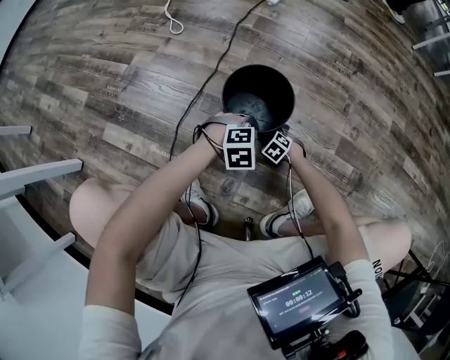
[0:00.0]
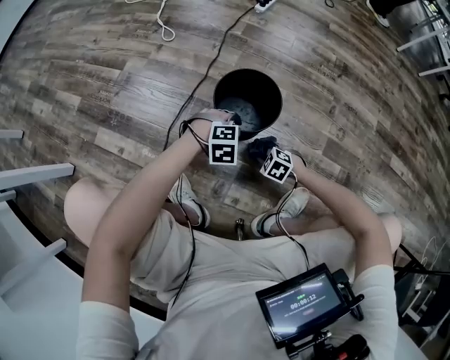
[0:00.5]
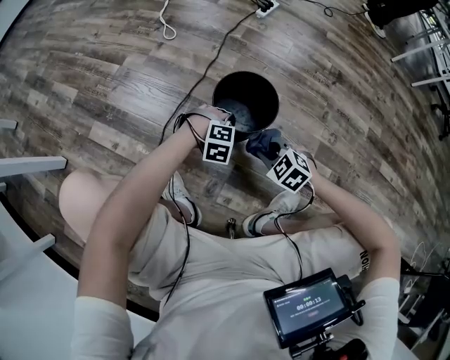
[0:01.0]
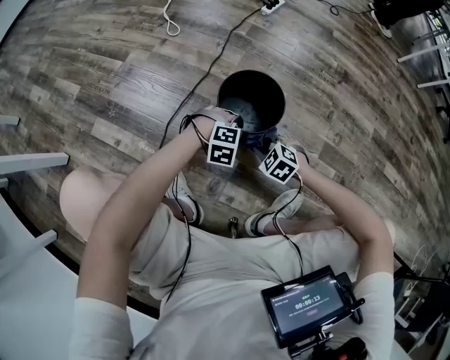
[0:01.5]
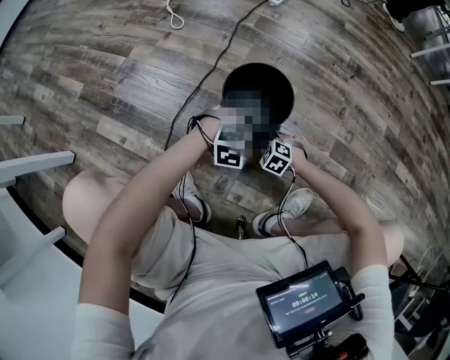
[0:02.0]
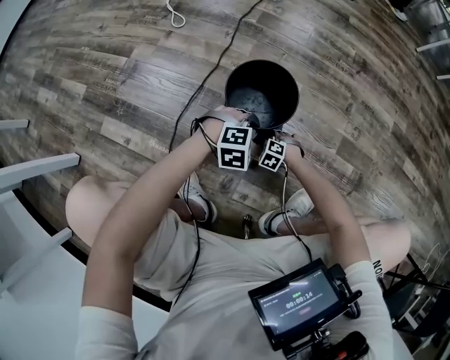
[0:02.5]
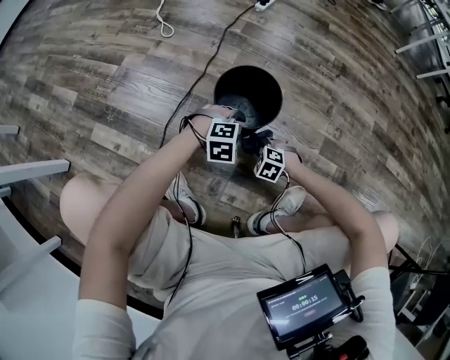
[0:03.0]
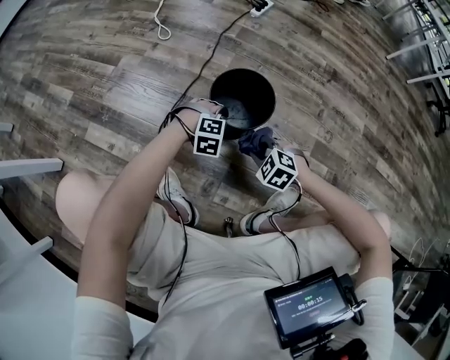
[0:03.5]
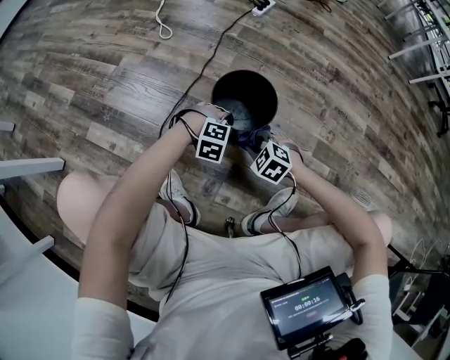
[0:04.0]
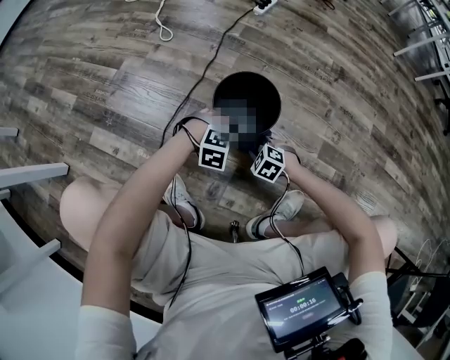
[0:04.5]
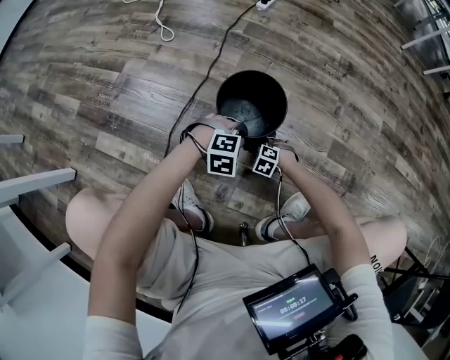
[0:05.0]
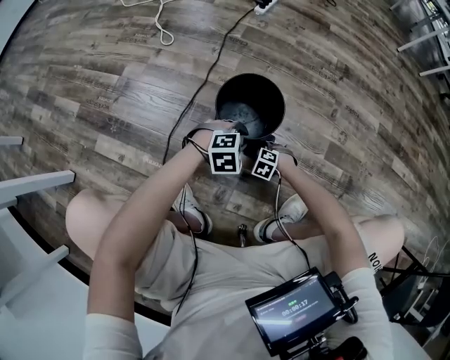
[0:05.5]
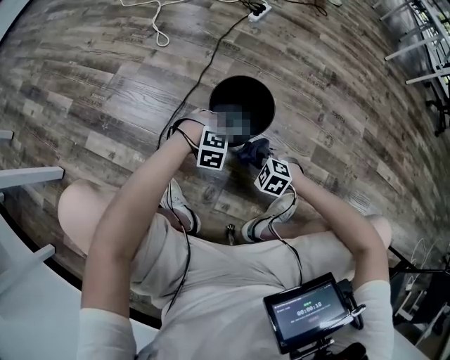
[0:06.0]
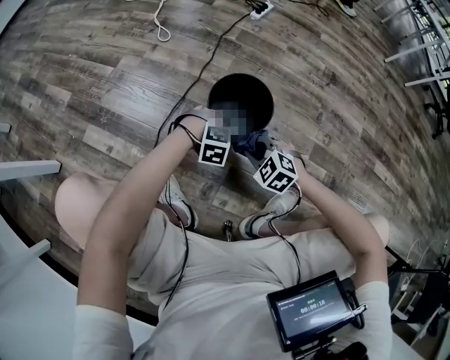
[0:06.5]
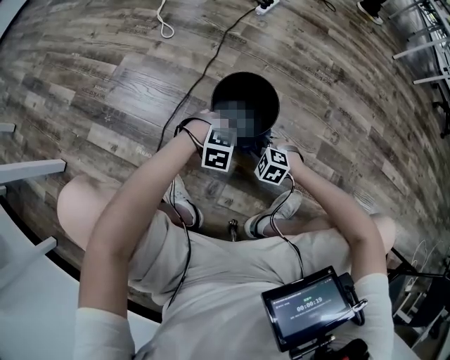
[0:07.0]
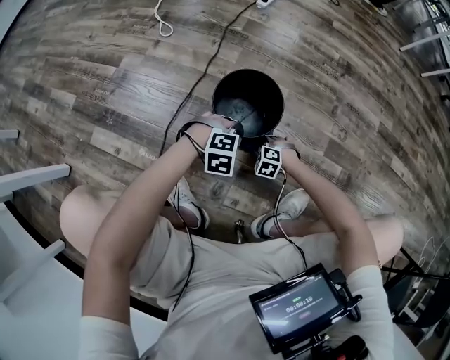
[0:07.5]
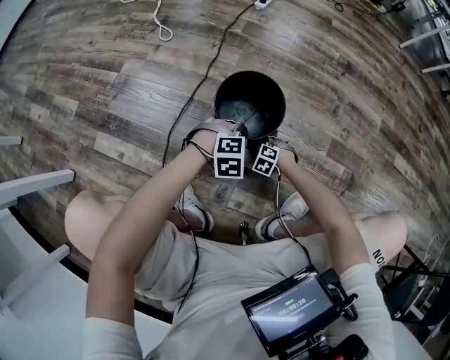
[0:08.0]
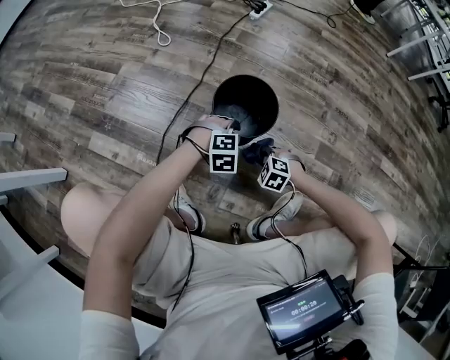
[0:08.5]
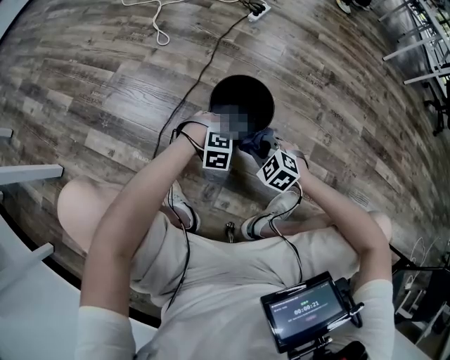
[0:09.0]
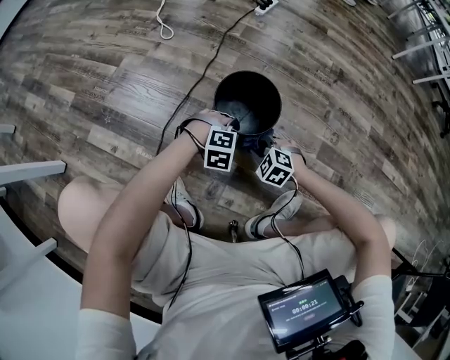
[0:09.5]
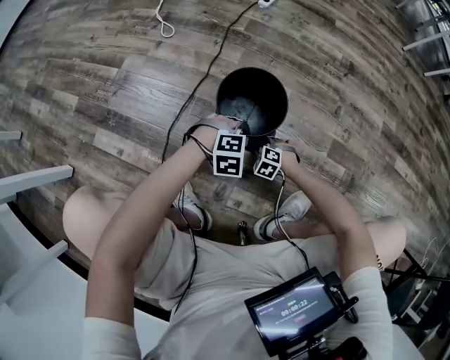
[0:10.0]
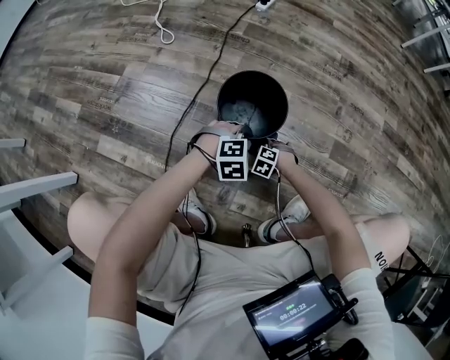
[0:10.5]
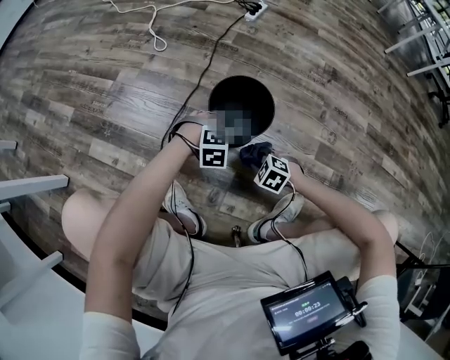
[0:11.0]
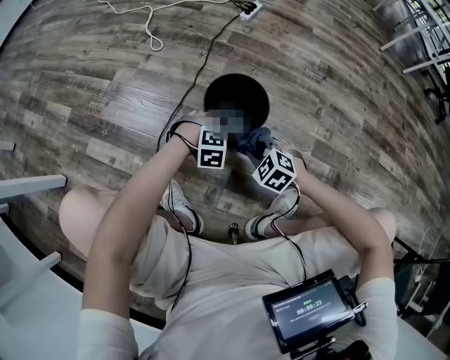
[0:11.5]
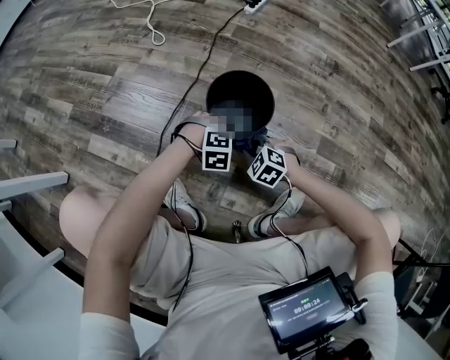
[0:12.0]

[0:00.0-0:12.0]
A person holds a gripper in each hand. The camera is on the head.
0:00.0 to 0:02.0: The right gripper reaches approximately 25 cm upward, then returns.
0:02.0 to 0:04.0: The right gripper travels upward by about 15 cm.
0:04.0 to 0:06.0: The right gripper moves about 20 cm downward and comes back.
0:06.0 to 0:08.0: The right gripper moves downward, about 15 cm.
0:08.0 to 0:10.0: The right gripper moves roughly 25 cm upward and comes back.
0:10.0 to 0:12.0: The right gripper shifts some 15 cm upward. The left gripper opens, then closes again.

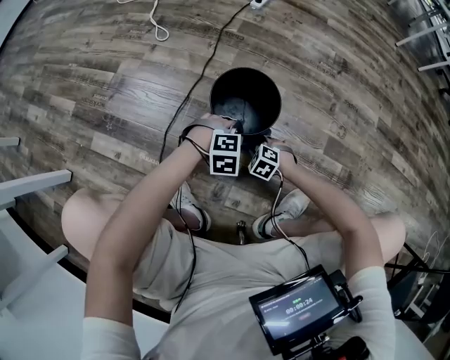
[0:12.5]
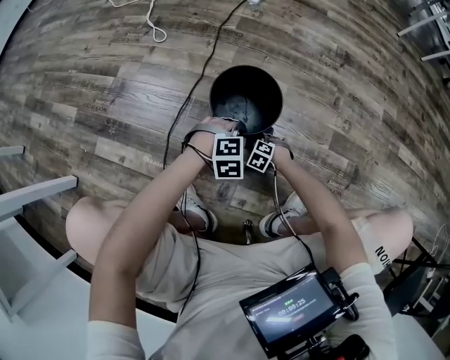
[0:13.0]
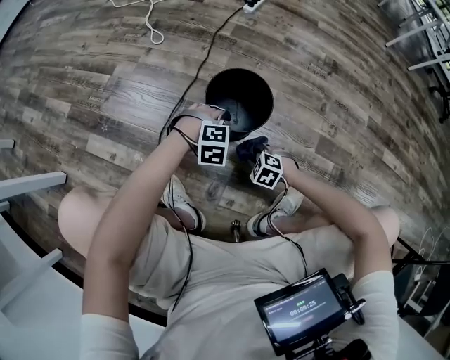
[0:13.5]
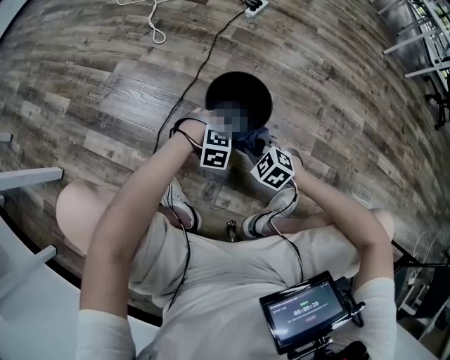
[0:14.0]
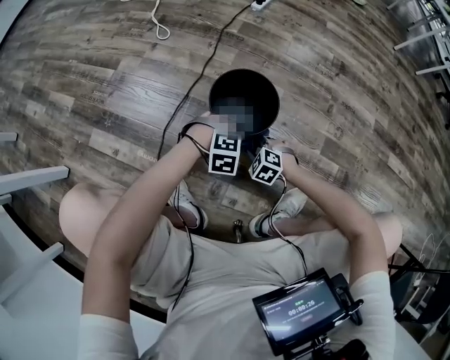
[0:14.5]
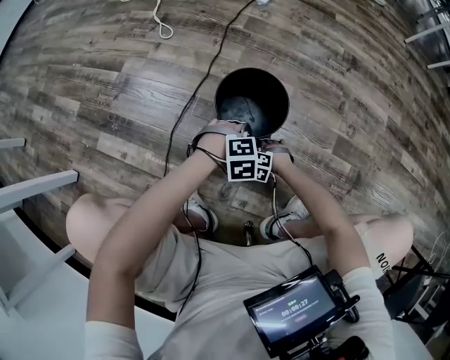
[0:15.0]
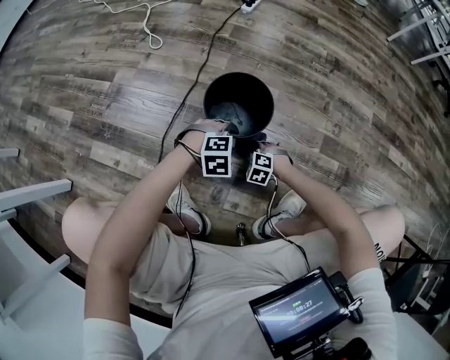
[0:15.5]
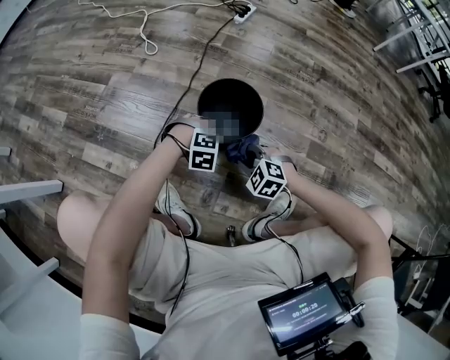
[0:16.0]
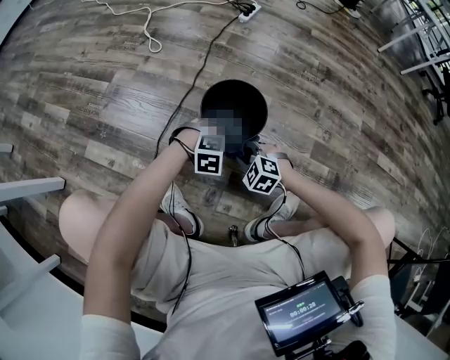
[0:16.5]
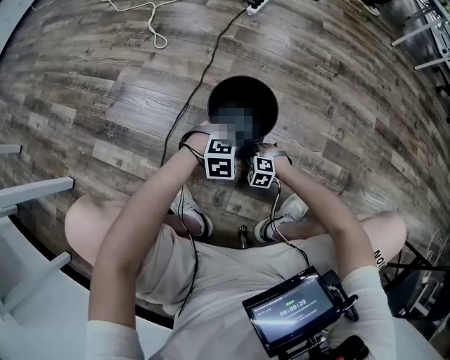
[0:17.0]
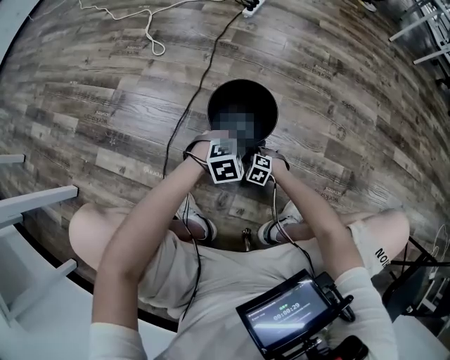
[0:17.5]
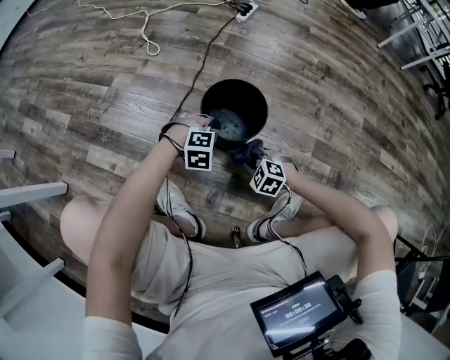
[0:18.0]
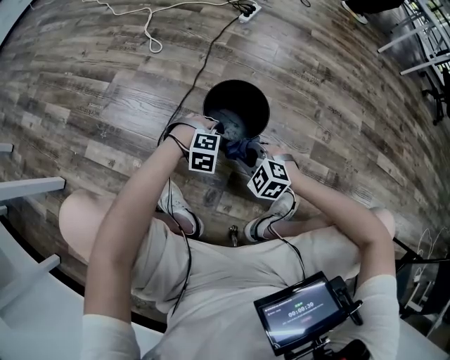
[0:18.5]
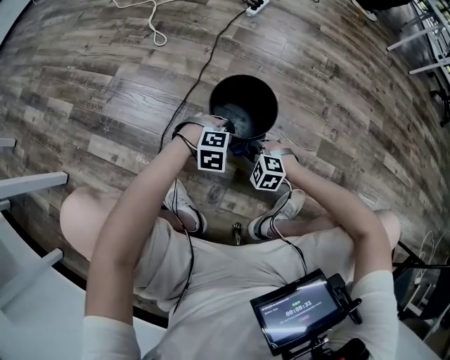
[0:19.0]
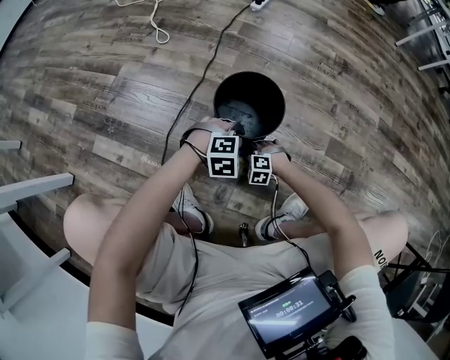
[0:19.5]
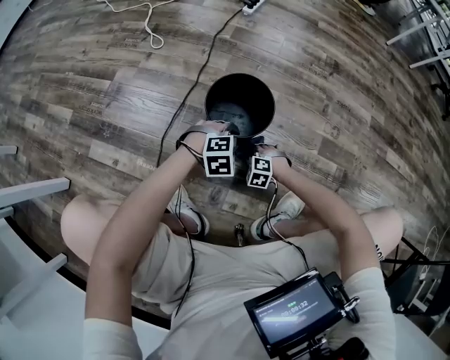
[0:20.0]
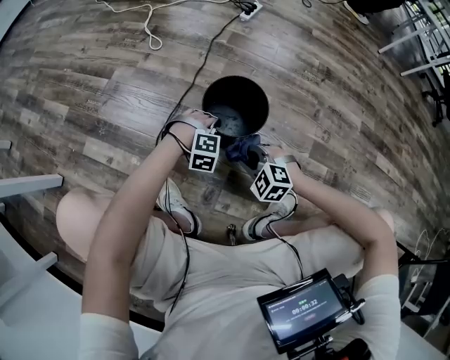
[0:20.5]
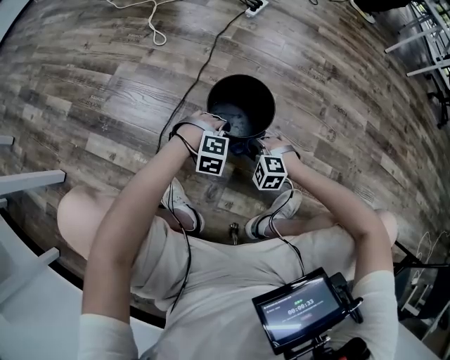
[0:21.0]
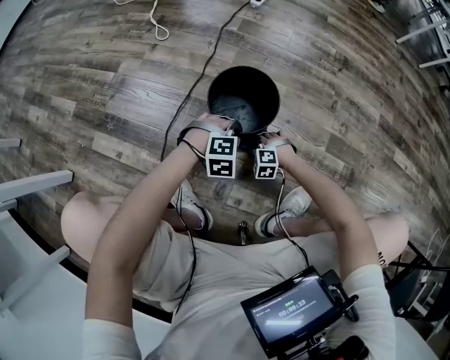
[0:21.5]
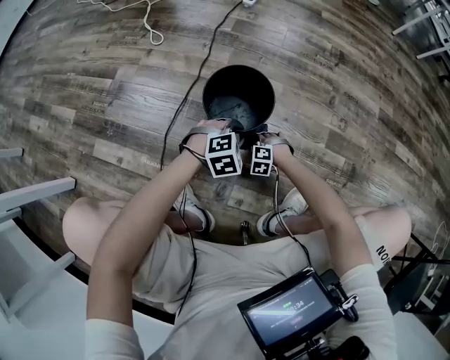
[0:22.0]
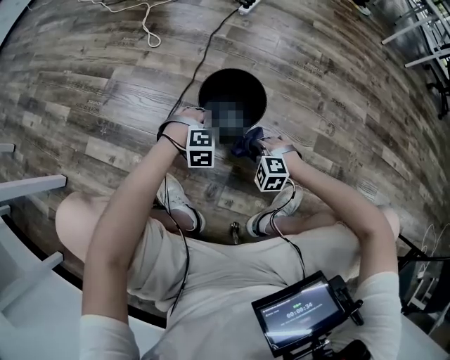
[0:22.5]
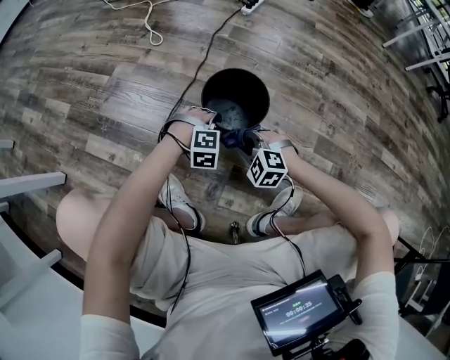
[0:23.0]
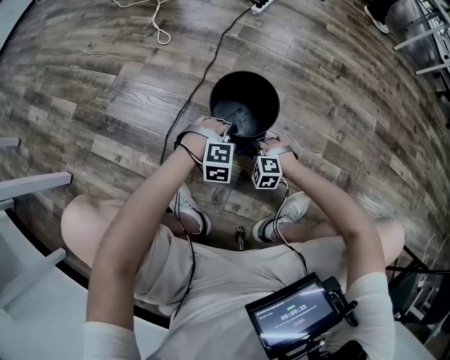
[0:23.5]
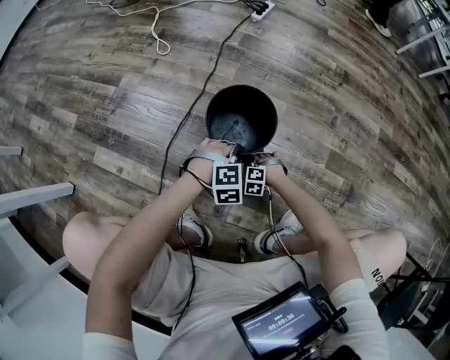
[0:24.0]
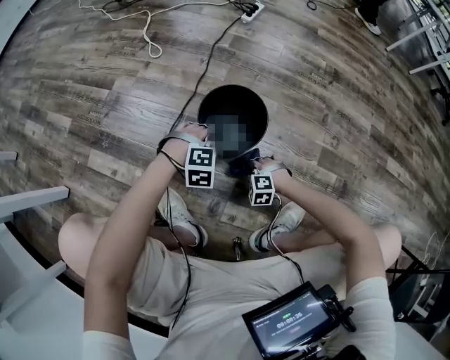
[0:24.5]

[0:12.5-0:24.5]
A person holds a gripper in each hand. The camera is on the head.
0:12.5 to 0:14.5: The right gripper swings up and down, some 25 cm each way, with 2 reversals. The left gripper opens and closes again.
0:14.5 to 0:16.5: The left gripper opens, then closes once more. Meanwhile the right gripper shifts about 5 cm upward.
0:16.5 to 0:18.5: The right gripper travels downward and back again, roughly 20 cm each way.
0:18.5 to 0:20.5: The right gripper moves approximately 20 cm downward and comes back.
0:20.5 to 0:22.5: The right gripper moves some 20 cm downward and comes back.
0:22.5 to 0:24.5: The right gripper swings up and down, approximately 25 cm each way, with 2 reversals, while the left gripper closes, then reopens.

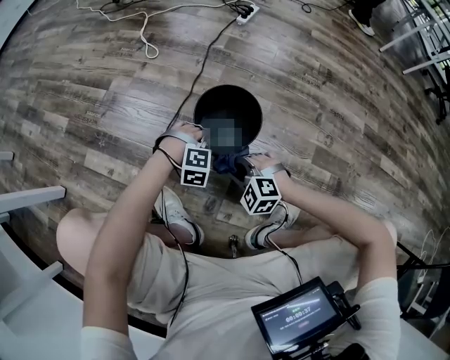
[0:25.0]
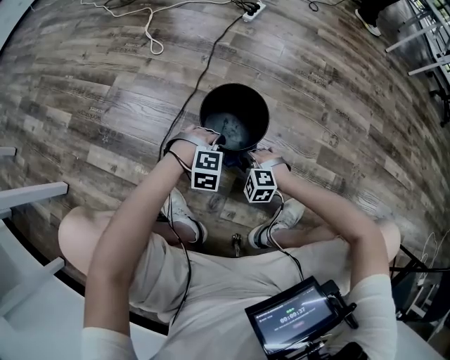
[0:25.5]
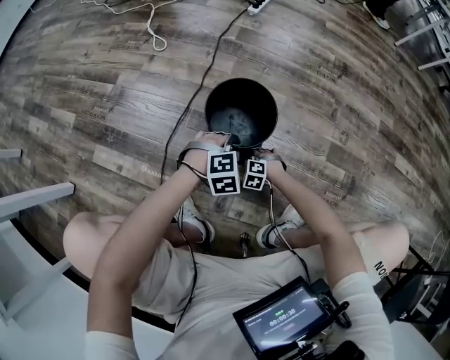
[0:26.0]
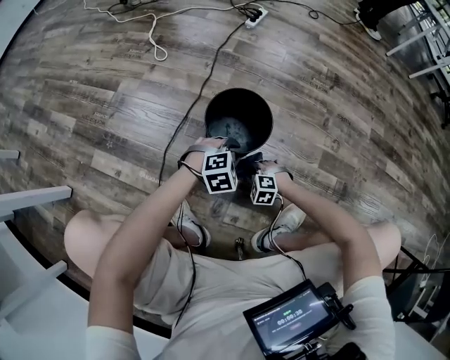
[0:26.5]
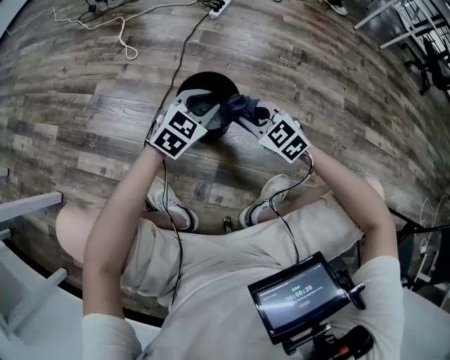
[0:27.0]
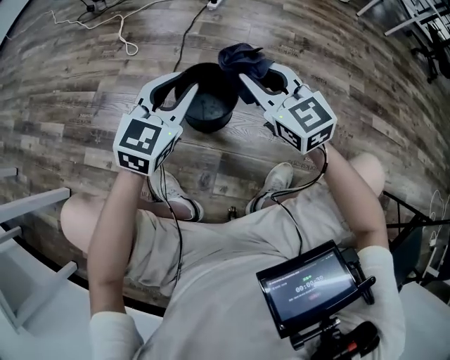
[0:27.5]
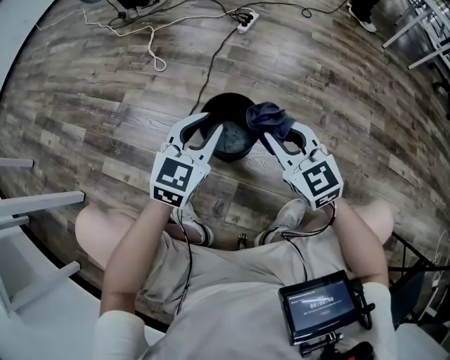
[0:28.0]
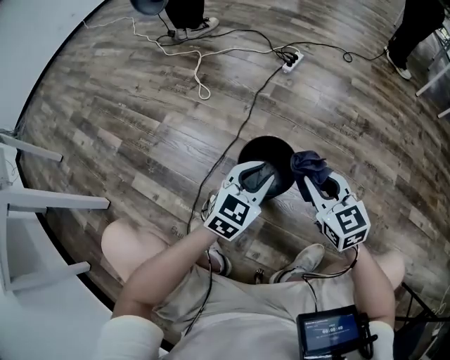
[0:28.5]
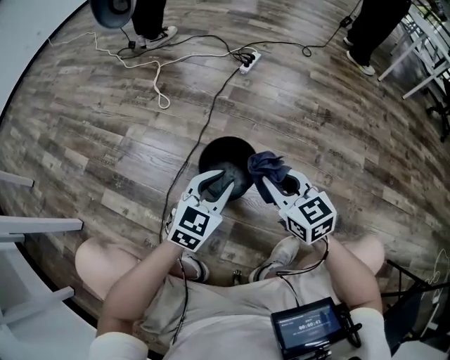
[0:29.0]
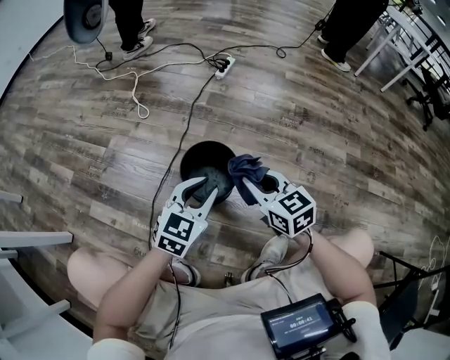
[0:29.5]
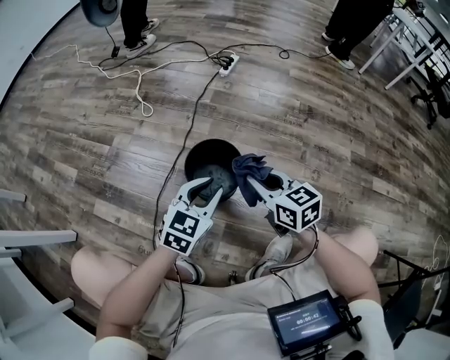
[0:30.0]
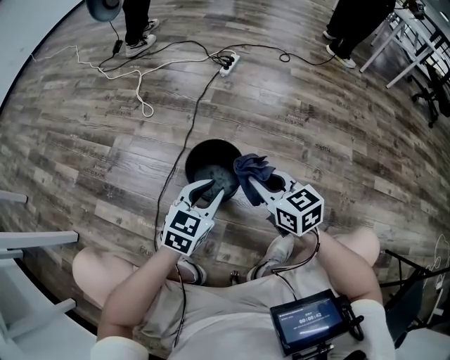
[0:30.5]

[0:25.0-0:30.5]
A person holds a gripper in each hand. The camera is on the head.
0:25.0 to 0:27.0: The right gripper moves upward, to the right and forward, about 15 cm, and turns by approximately 30 degrees; the left gripper heads upward, covering approximately 20 cm, and tips its fingers upward by some 40 degrees.
0:27.0 to 0:28.5: The right gripper moves upward, some 10 cm, and changes its angle by approximately 20 degrees.
